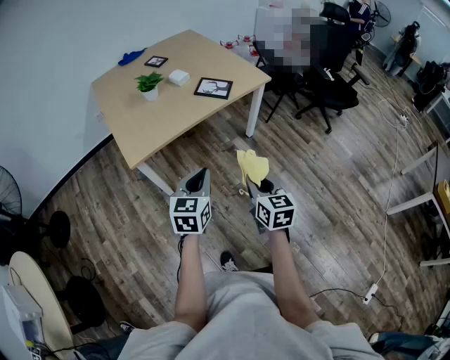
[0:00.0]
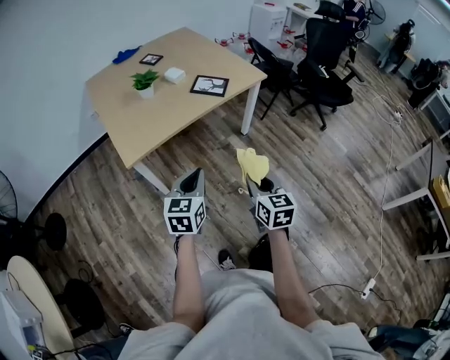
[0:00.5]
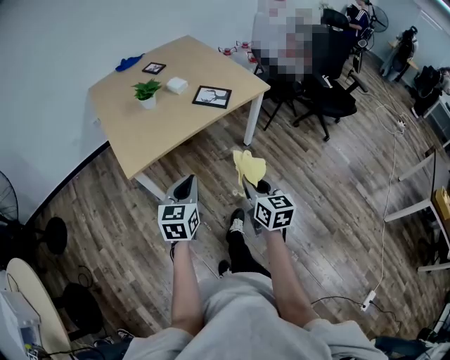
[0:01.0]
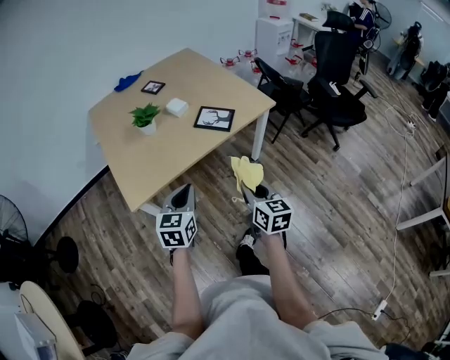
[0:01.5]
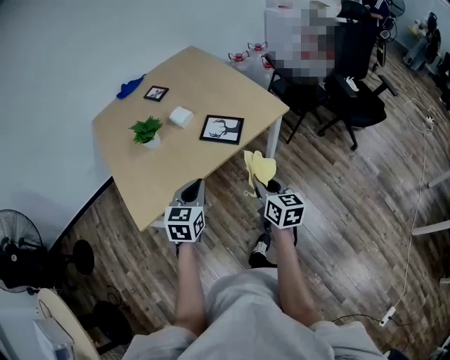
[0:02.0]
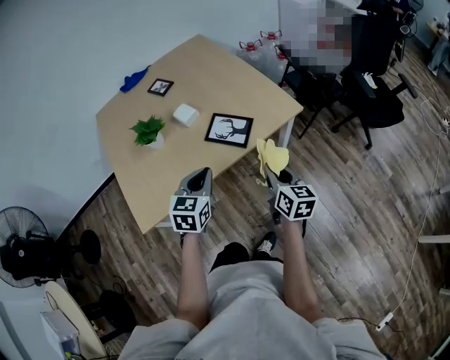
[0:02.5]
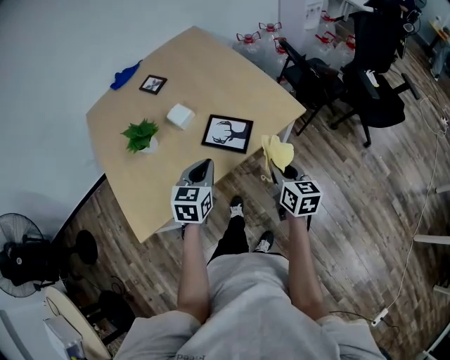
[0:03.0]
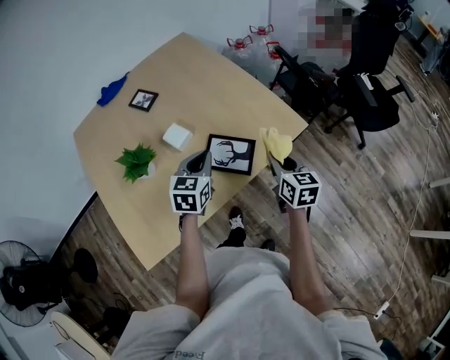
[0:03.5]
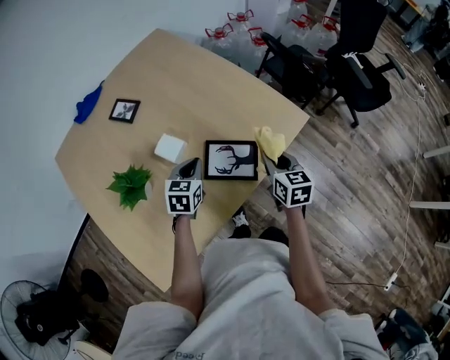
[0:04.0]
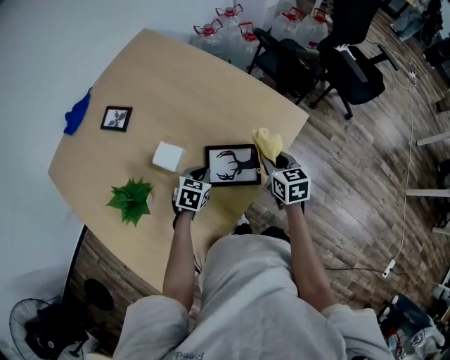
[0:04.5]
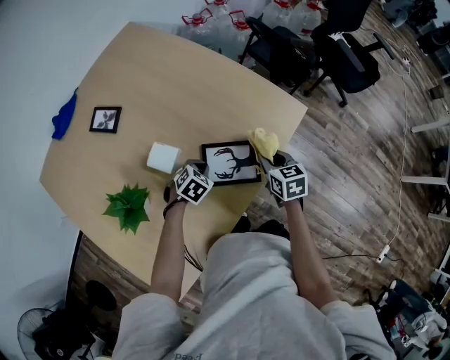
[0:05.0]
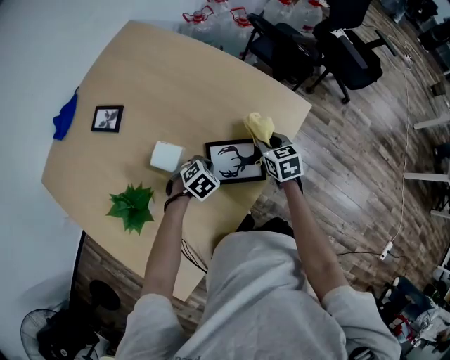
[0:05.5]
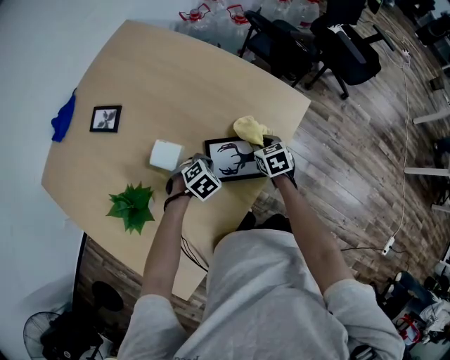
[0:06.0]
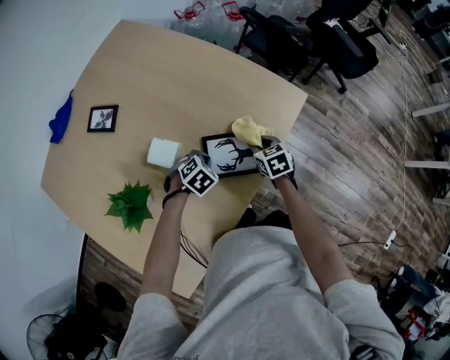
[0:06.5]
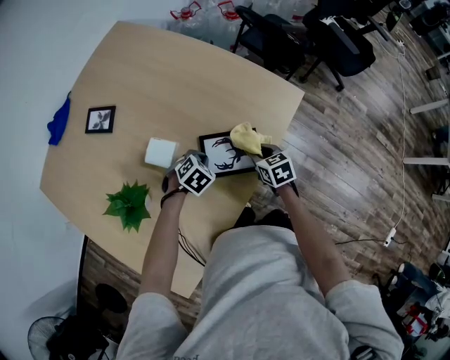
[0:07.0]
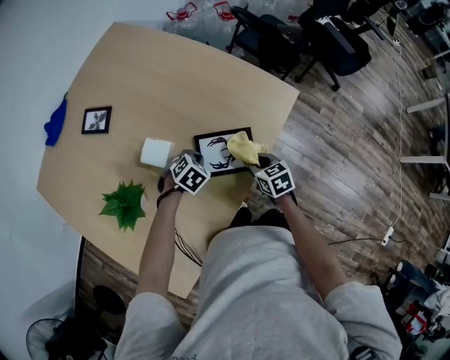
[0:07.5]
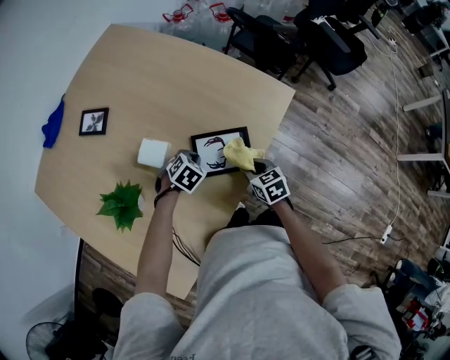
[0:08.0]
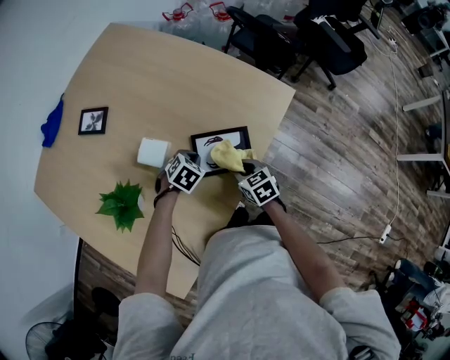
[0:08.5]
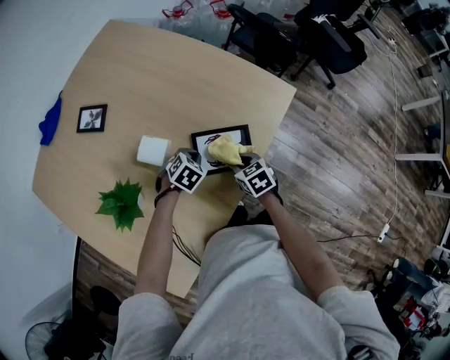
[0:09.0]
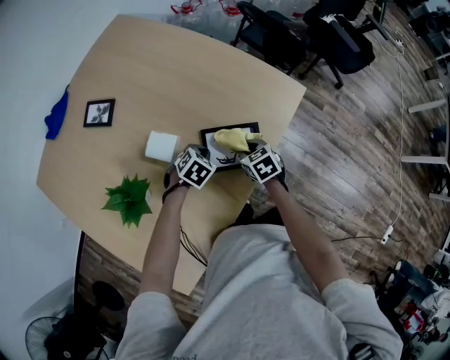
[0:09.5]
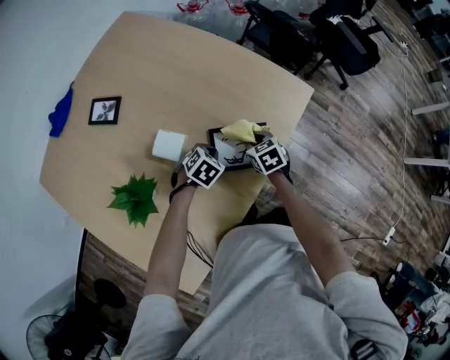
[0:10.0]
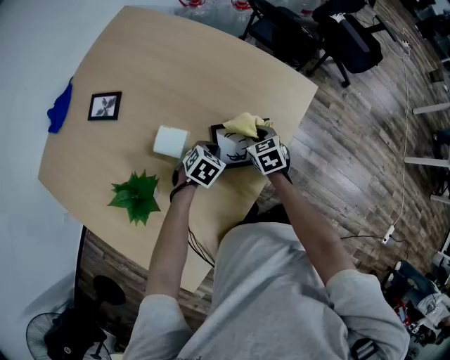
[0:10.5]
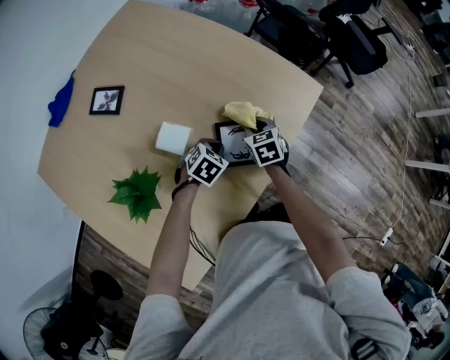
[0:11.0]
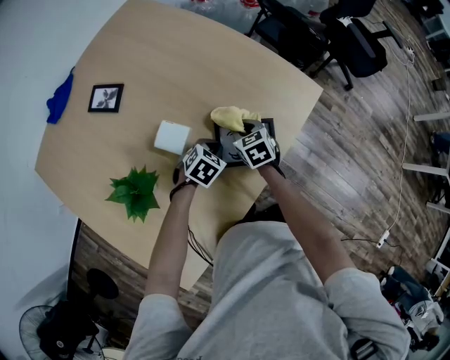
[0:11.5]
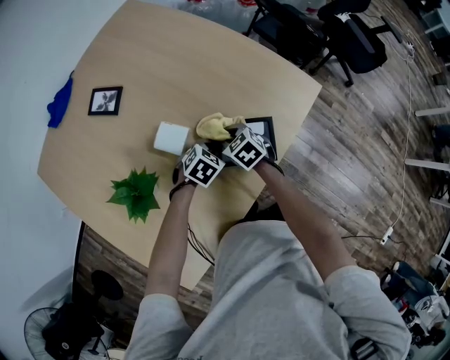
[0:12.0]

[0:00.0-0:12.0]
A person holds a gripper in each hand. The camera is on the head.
0:00.0 to 0:02.0: The two grippers go roughly 30 cm forward.
0:02.0 to 0:04.0: Both grippers move forward, roughly 35 cm.
0:04.0 to 0:06.0: The two grippers go about 15 cm downward. The left gripper turns by roughly 60 degrees, while the right gripper turns by some 20 degrees.
0:06.0 to 0:08.0: The right gripper heads backward, covering approximately 10 cm.
0:08.0 to 0:10.0: The right gripper travels forward and to the left by roughly 10 cm.
0:10.0 to 0:12.0: The right gripper goes about 10 cm to the left.

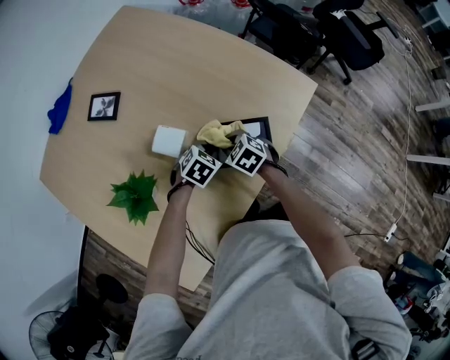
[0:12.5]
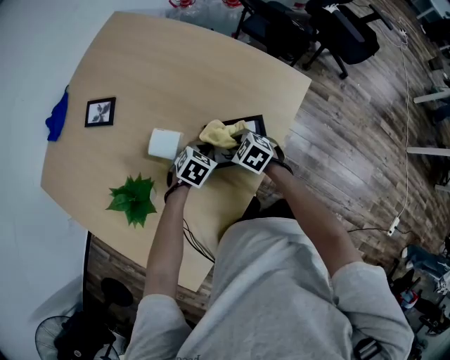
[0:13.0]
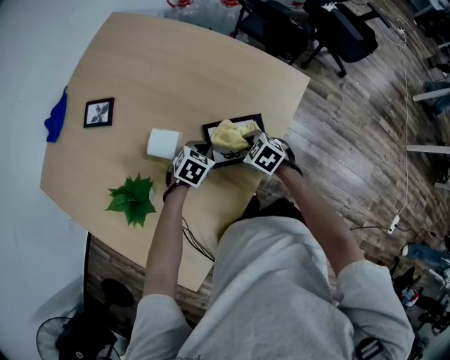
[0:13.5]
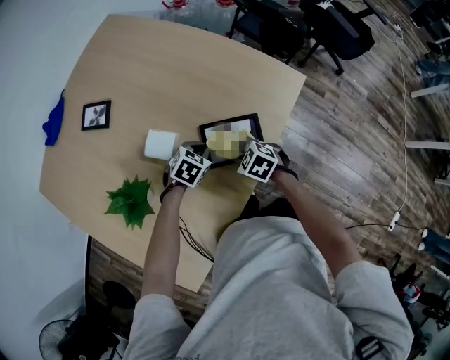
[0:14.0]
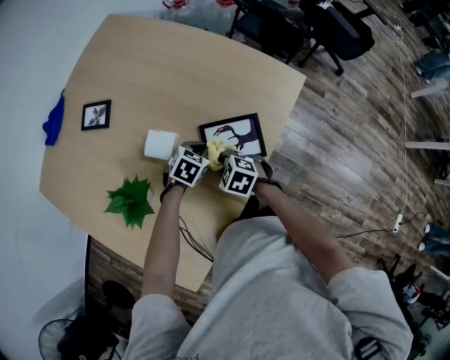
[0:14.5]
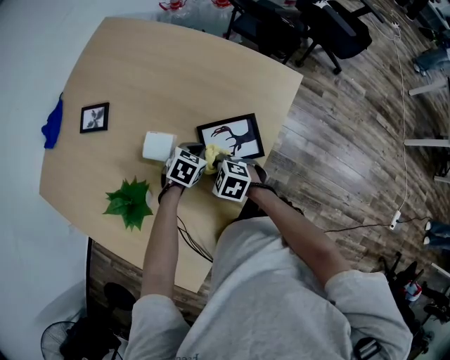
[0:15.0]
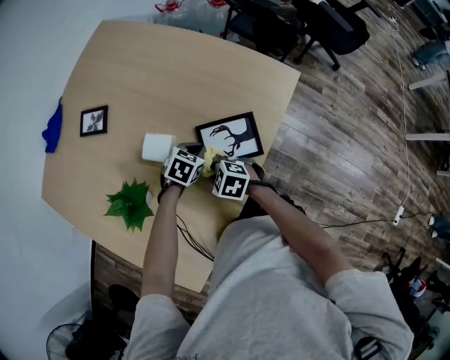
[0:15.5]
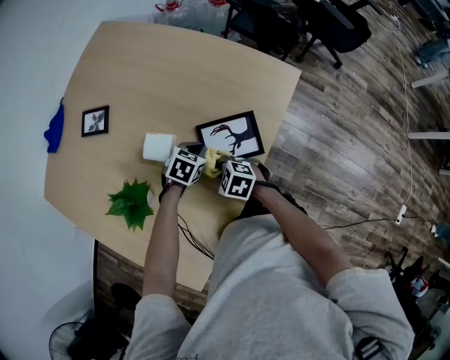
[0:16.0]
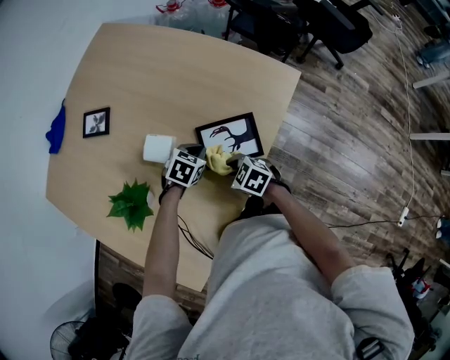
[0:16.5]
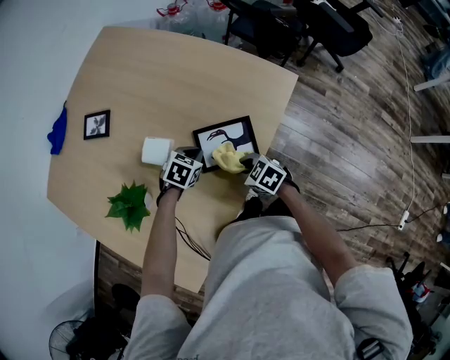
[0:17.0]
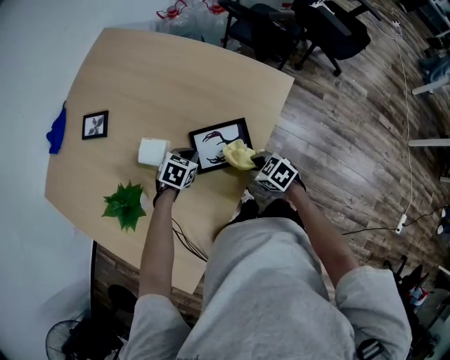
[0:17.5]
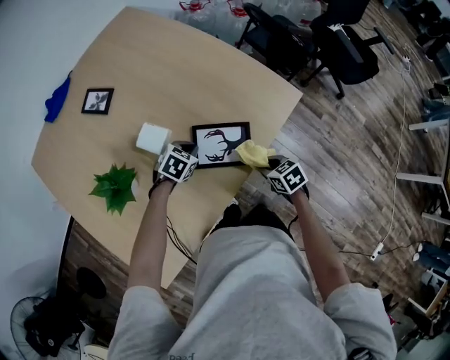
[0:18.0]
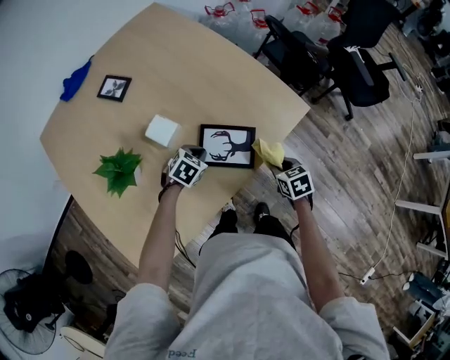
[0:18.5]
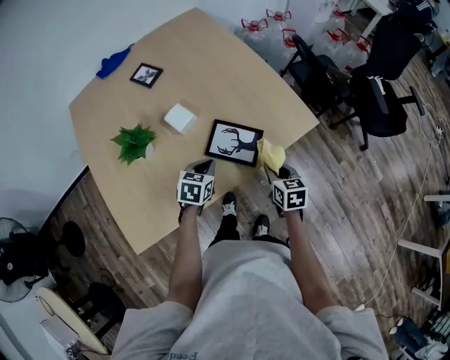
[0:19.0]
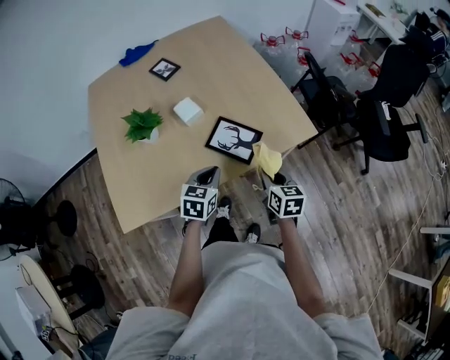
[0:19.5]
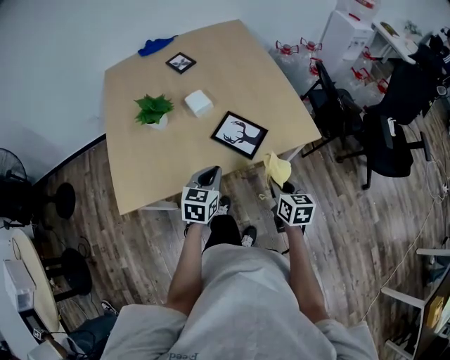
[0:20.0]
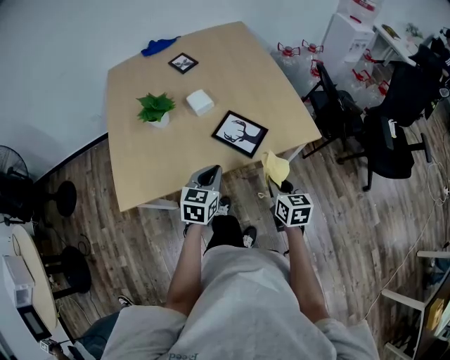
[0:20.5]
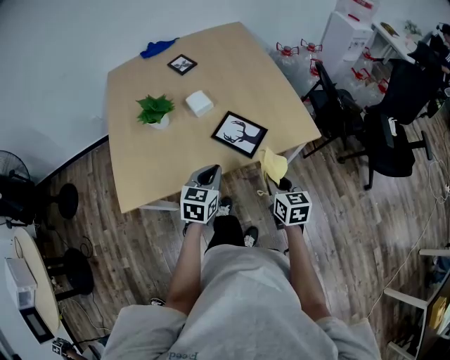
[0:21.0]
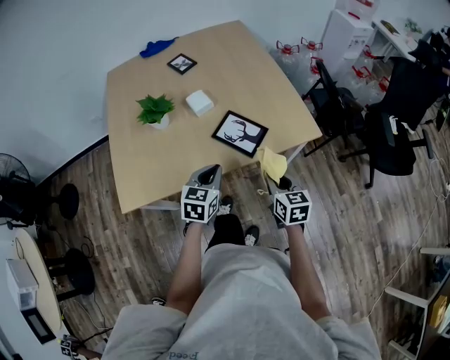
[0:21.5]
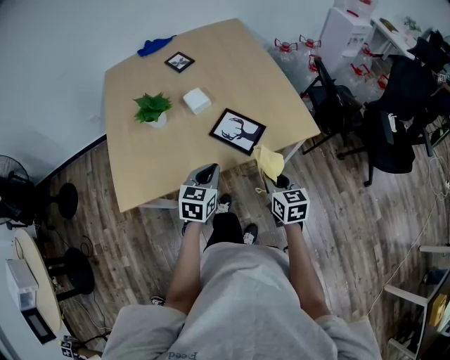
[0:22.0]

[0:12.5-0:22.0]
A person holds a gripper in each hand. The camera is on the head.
0:12.5 to 0:14.5: The right gripper moves some 10 cm.
0:14.5 to 0:16.5: There are only small adjustments of the grippers.
0:16.5 to 0:18.0: The right gripper ends up some 20 cm from where it was.
0:18.0 to 0:20.0: The left gripper ends up roughly 30 cm from where it was, and rotates some 60 degrees; the right gripper heads upward, covering about 15 cm, and rotates roughly 30 degrees.
0:20.0 to 0:22.0: The grippers make only small movements.

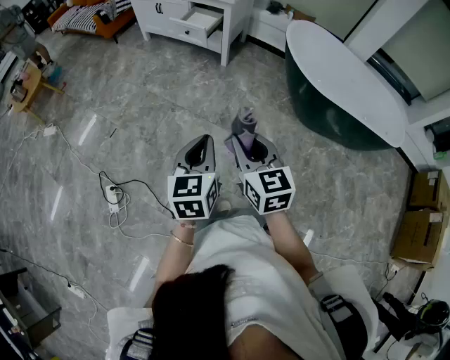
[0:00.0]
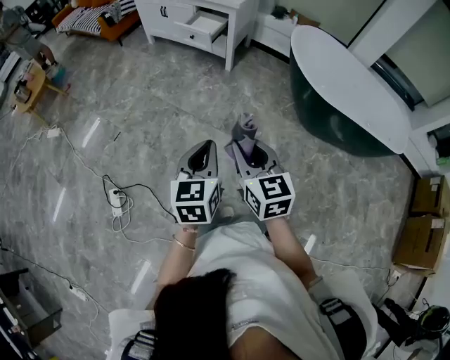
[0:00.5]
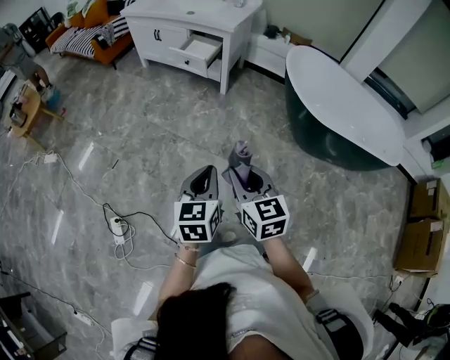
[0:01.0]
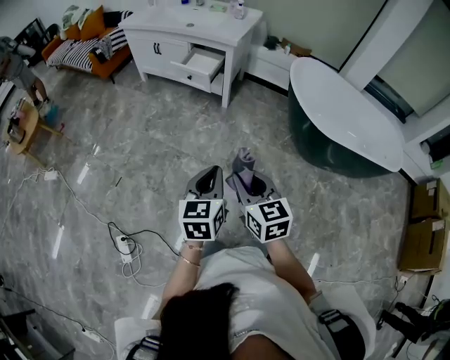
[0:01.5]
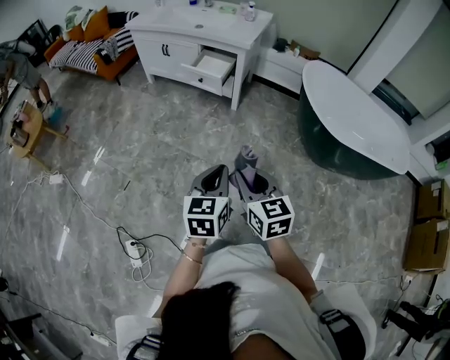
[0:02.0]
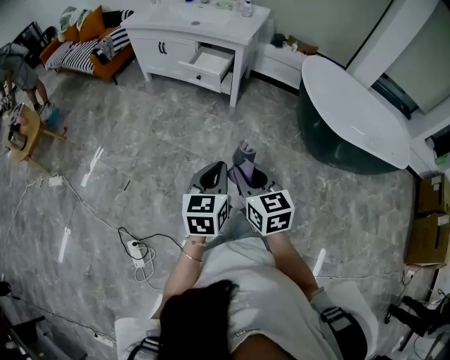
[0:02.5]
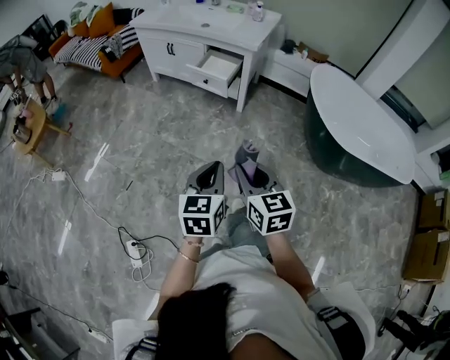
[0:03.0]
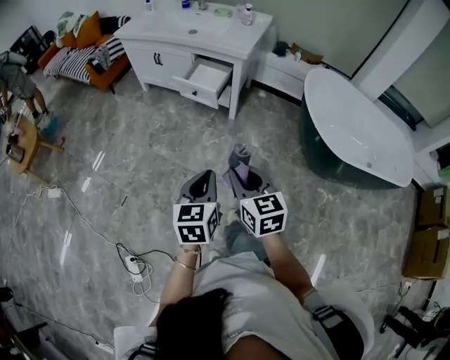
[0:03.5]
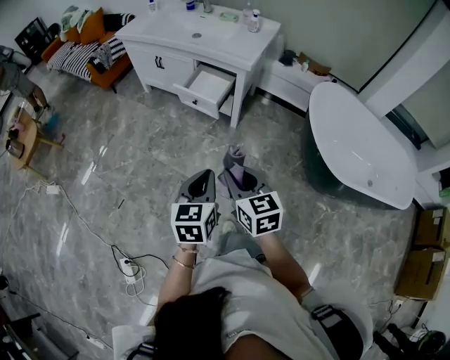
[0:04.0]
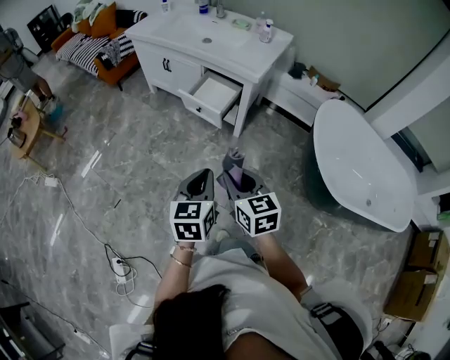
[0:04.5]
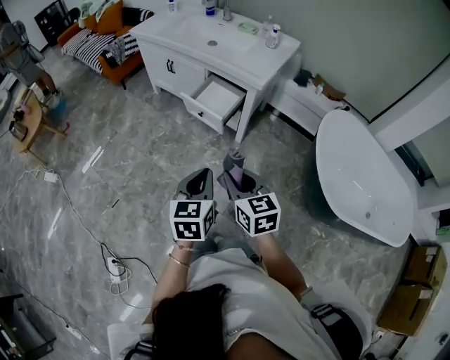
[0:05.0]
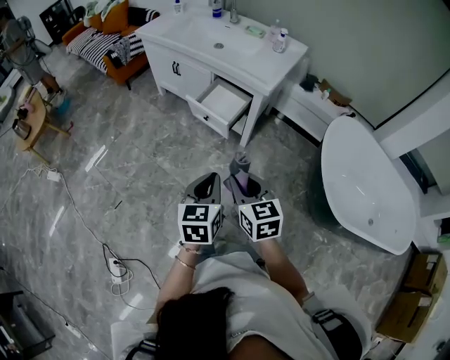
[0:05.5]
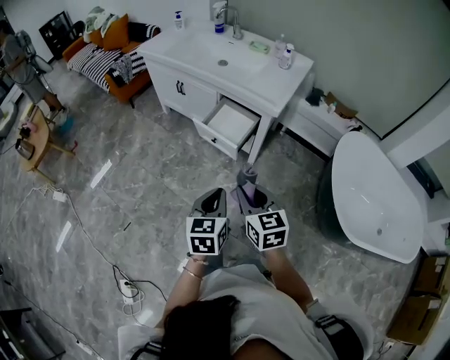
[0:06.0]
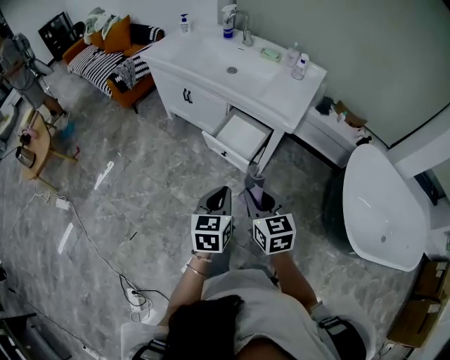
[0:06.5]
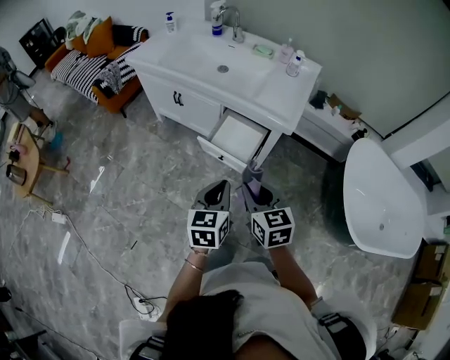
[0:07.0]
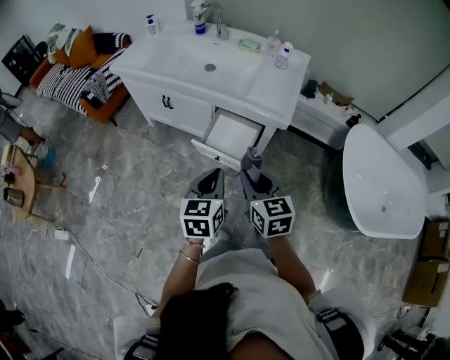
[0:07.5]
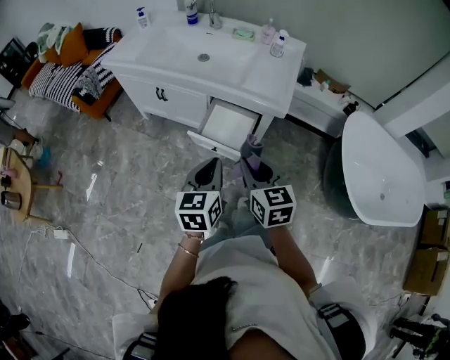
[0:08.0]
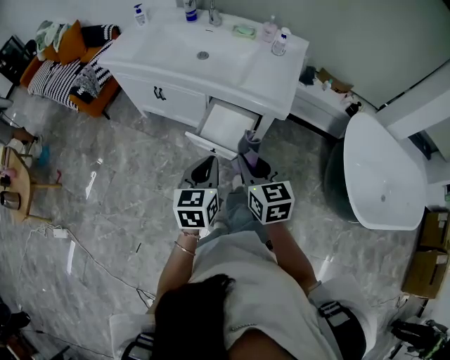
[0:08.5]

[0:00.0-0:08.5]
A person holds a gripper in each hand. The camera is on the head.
0:00.0 to 0:02.0: The two grippers go approximately 20 cm forward and to the left.
0:02.0 to 0:04.0: Both grippers travel together forward, about 25 cm.
0:04.0 to 0:06.5: The two grippers go some 25 cm forward.
0:06.5 to 0:08.5: Both grippers move forward, some 15 cm.
